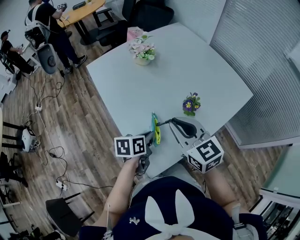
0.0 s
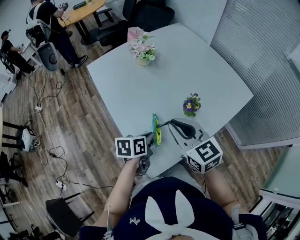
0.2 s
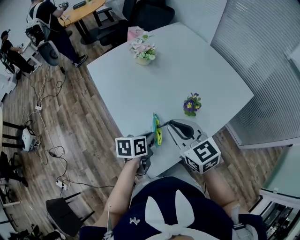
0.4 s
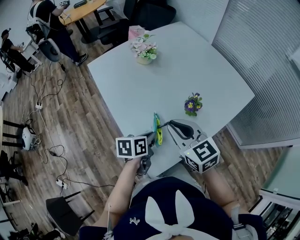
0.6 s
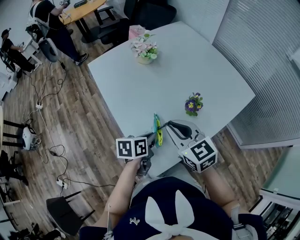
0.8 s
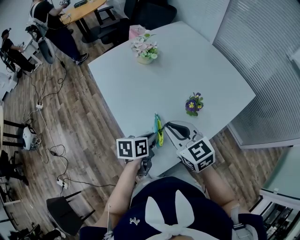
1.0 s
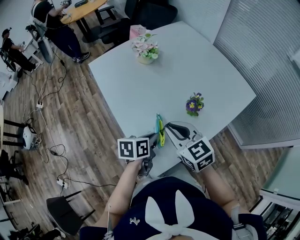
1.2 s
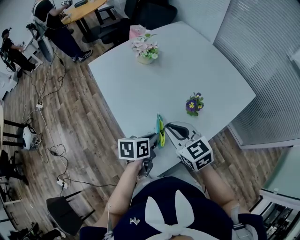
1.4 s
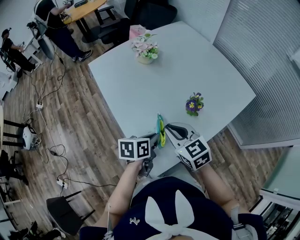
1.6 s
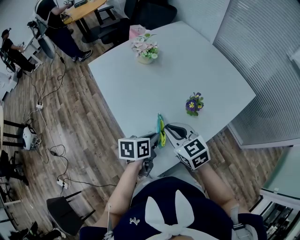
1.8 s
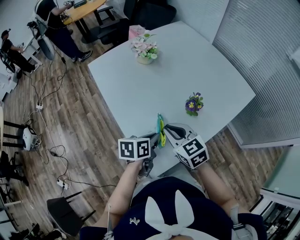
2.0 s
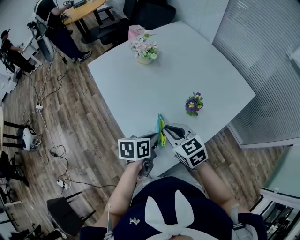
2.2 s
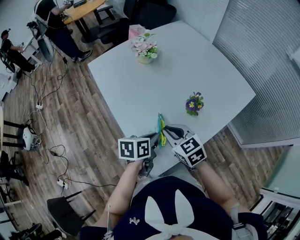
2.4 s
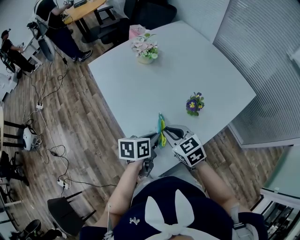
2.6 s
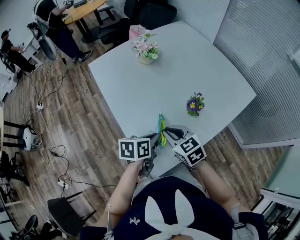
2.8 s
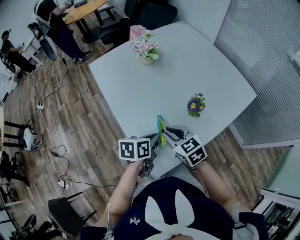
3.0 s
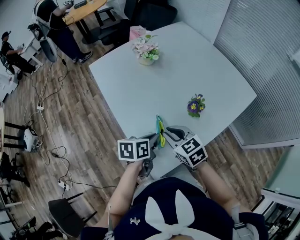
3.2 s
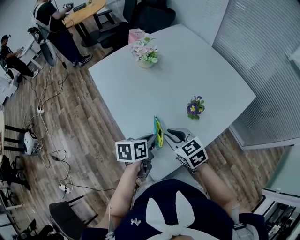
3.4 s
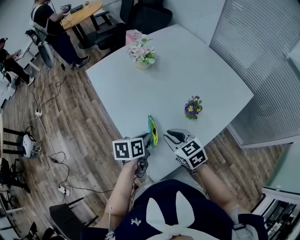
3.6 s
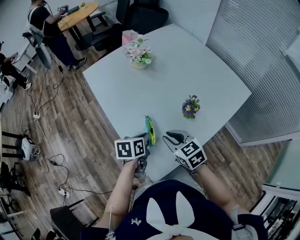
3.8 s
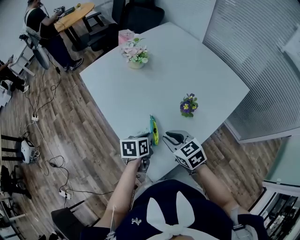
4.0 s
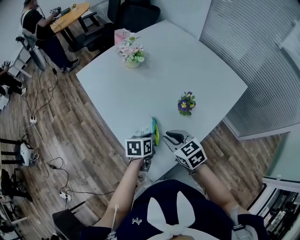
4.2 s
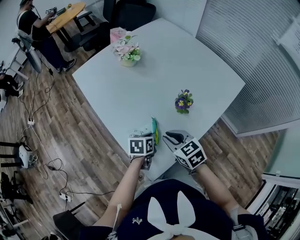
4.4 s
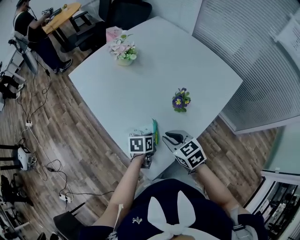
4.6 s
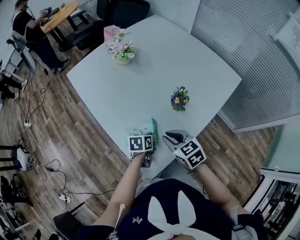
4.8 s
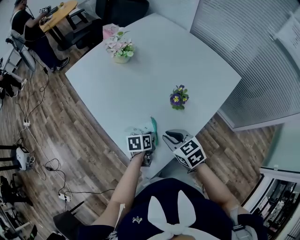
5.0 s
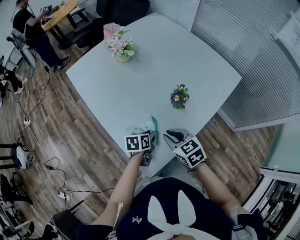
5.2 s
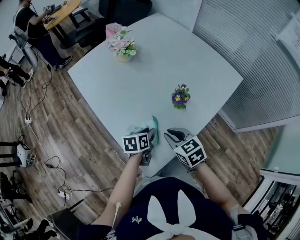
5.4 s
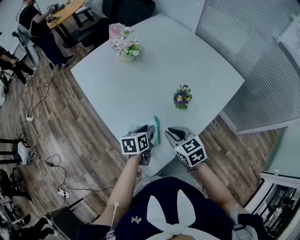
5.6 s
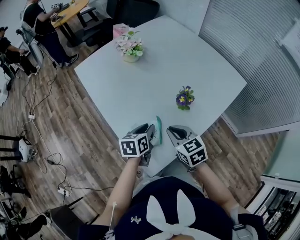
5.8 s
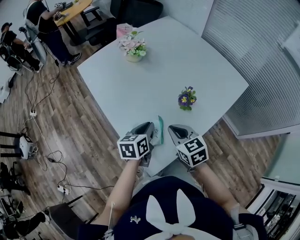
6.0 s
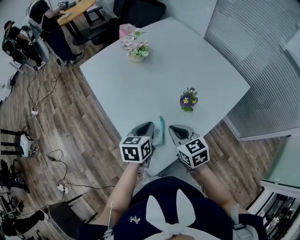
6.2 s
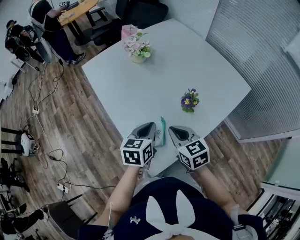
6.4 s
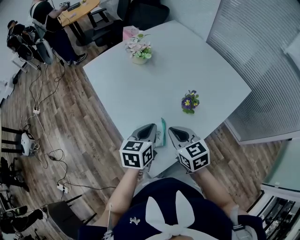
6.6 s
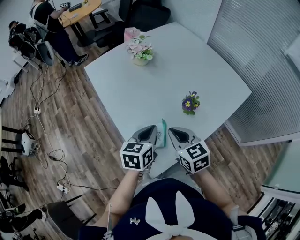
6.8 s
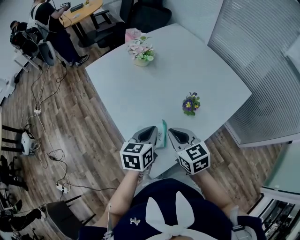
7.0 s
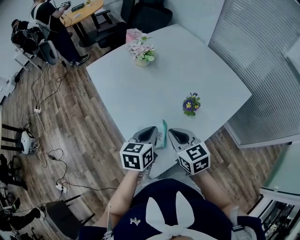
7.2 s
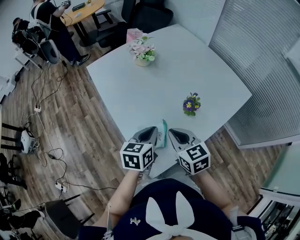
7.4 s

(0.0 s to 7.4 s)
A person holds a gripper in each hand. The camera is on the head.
0.0 s - 1.4 s: The right gripper is displaced downward by about 5 cm.
1.4 s - 3.0 s: The right gripper shifts some 5 cm downward.
3.0 s - 4.4 s: The left gripper shifts roughly 10 cm downward.
4.4 s - 6.0 s: The left gripper heads upward, covering some 10 cm.
6.0 s - 7.4 s: The left gripper goes roughly 5 cm upward, while the right gripper shifts by approximately 5 cm.

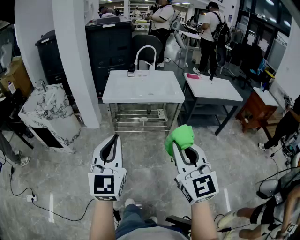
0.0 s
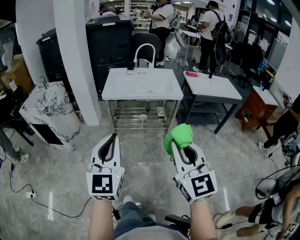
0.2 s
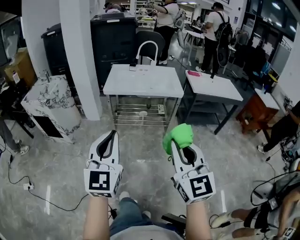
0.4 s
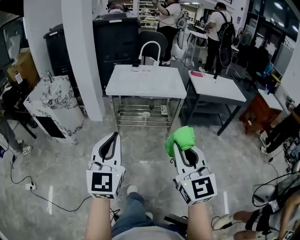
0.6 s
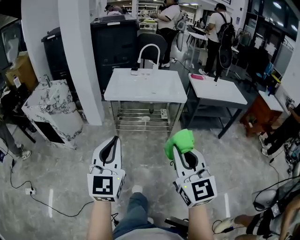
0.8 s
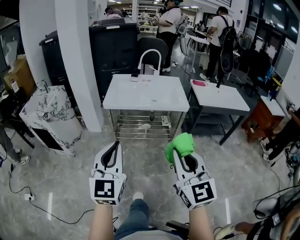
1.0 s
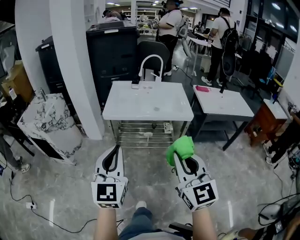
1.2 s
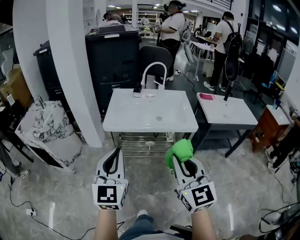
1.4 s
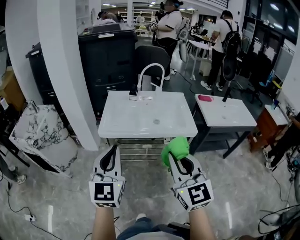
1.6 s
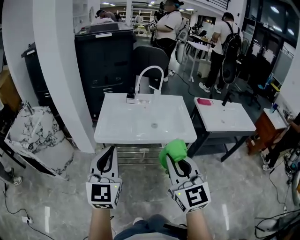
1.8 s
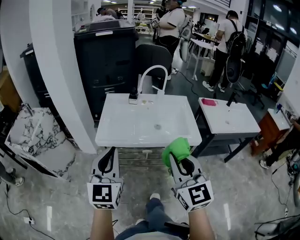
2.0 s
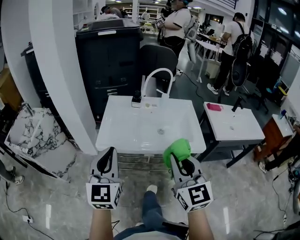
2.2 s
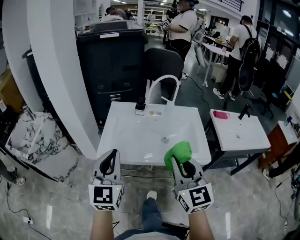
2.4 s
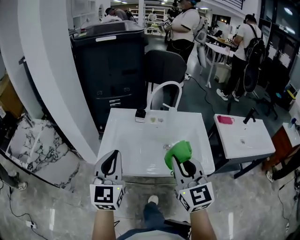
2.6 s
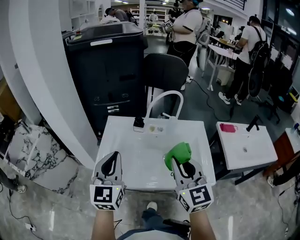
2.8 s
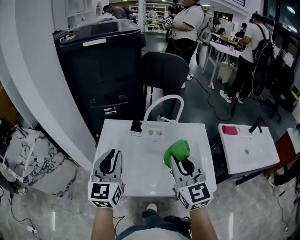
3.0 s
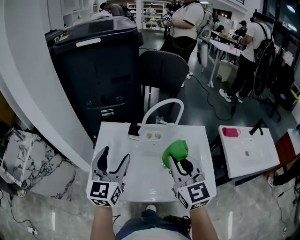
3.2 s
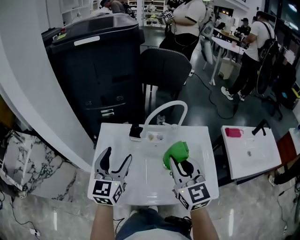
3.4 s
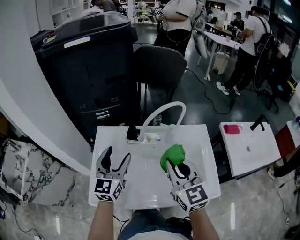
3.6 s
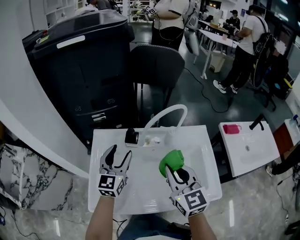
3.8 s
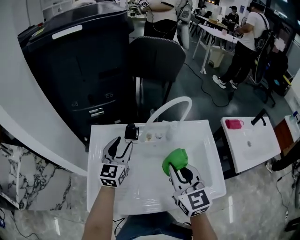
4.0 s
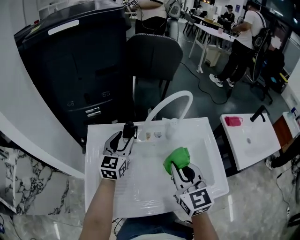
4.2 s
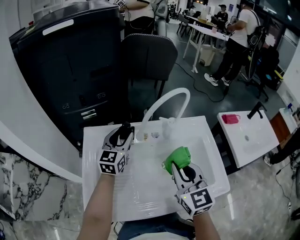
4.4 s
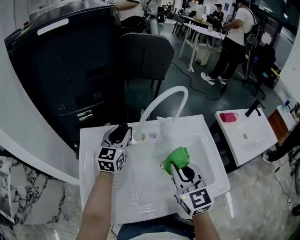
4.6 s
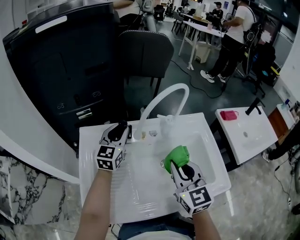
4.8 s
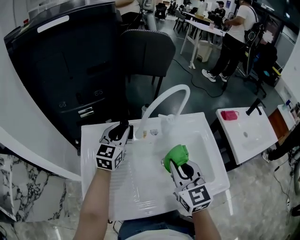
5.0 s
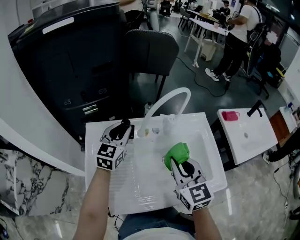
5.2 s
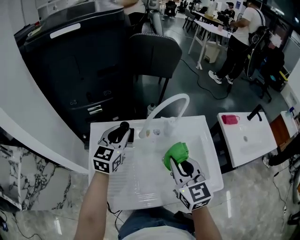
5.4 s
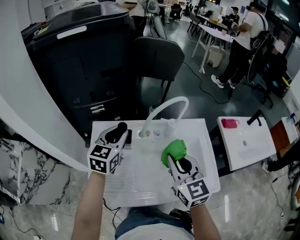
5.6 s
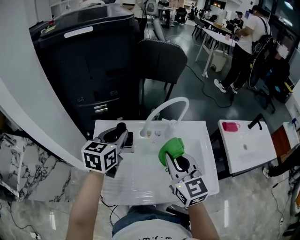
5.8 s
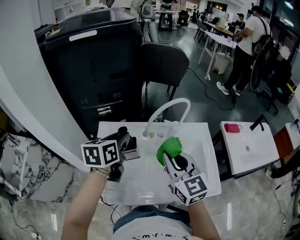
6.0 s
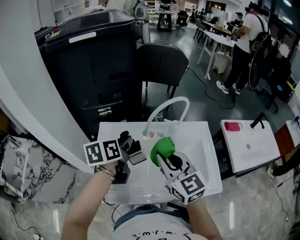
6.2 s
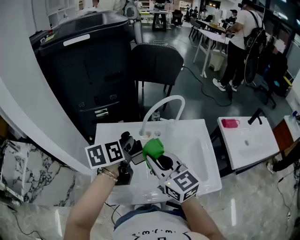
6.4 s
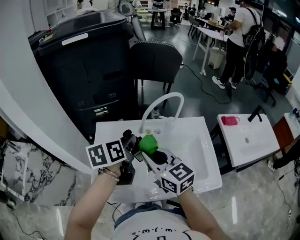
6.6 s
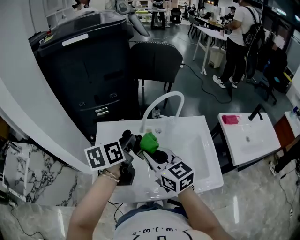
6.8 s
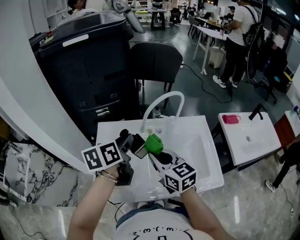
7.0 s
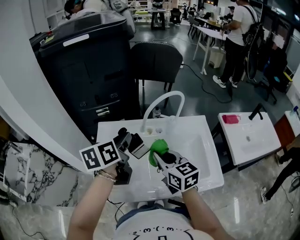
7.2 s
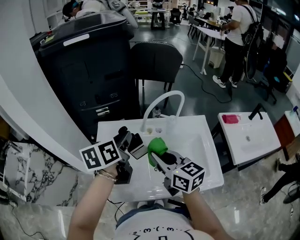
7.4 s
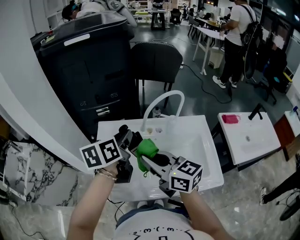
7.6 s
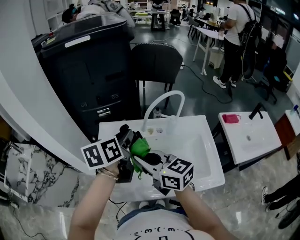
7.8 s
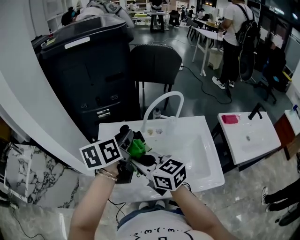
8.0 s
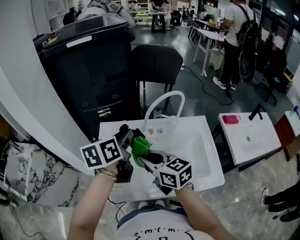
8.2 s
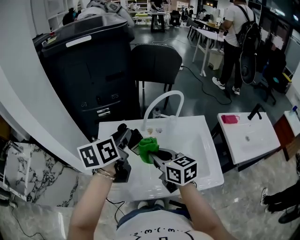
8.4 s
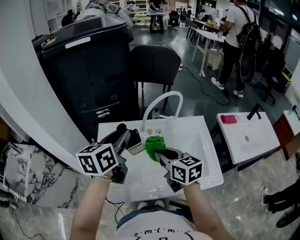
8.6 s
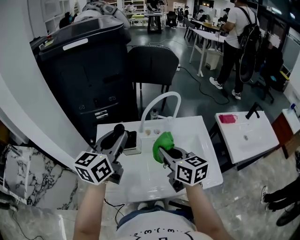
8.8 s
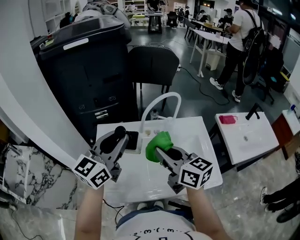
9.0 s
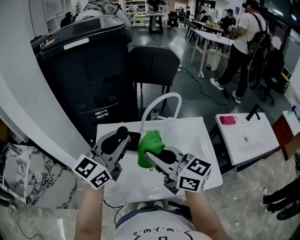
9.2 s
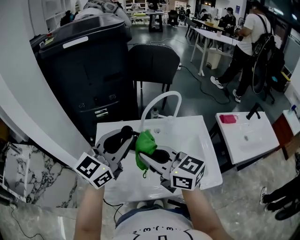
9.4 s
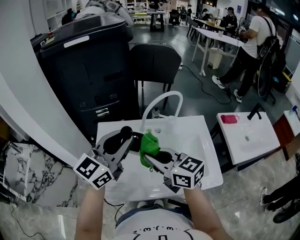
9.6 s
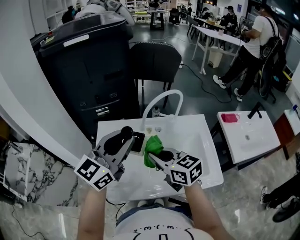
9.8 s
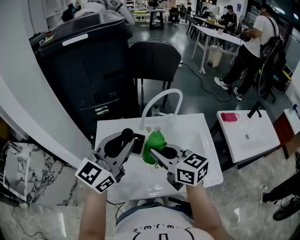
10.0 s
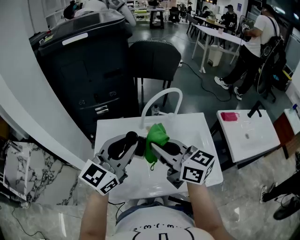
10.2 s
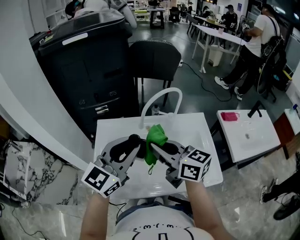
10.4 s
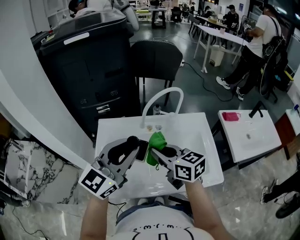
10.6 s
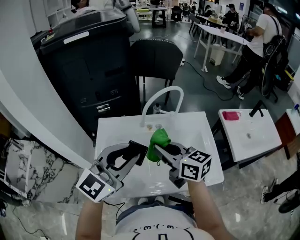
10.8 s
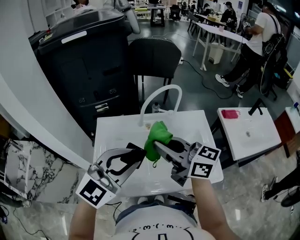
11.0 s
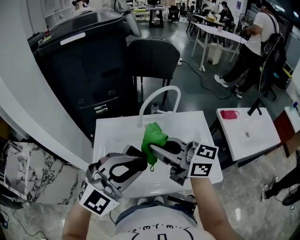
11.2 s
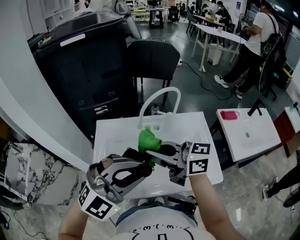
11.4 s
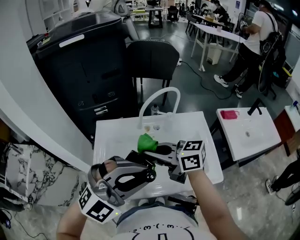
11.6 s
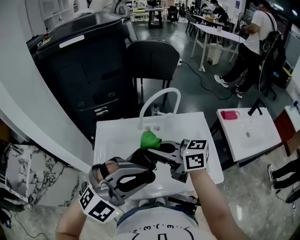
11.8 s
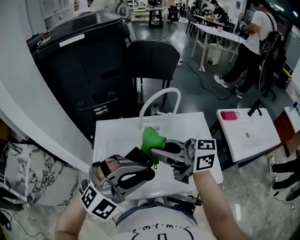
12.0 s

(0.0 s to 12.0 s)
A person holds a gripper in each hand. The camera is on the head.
0.0 s - 1.6 s: Both grippers travel together forward, approximately 30 cm.
1.6 s - 3.0 s: Both grippers move forward, roughly 40 cm.
3.0 s - 4.4 s: The left gripper is displaced forward and downward by roughly 30 cm, rotates roughly 20 degrees, and opens; the right gripper shifts roughly 15 cm downward and forward.
4.4 s - 6.0 s: The left gripper shifts about 15 cm upward and backward, rotates roughly 30 degrees, and closes up; the right gripper heads upward, covering some 10 cm.
6.0 s - 7.6 s: The right gripper heads to the left, covering some 10 cm, and swivels about 30 degrees.
7.6 s - 9.0 s: The right gripper heads to the right, covering roughly 5 cm. Meanwhile the left gripper moves upward, some 5 cm, and changes its angle by some 40 degrees.
9.0 s - 10.4 s: The left gripper changes place by roughly 5 cm. Meanwhile the right gripper moves up and down over roughly 10 cm, changing direction 2 times.
10.4 s - 12.0 s: The left gripper moves approximately 10 cm, and rolls clockwise, seen from behind, by approximately 50 degrees; the right gripper goes up and down, roughly 10 cm each way, reversing 3 times, and turns by some 30 degrees.

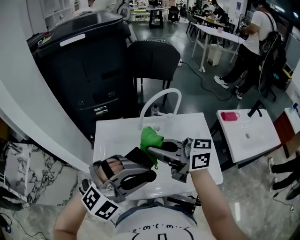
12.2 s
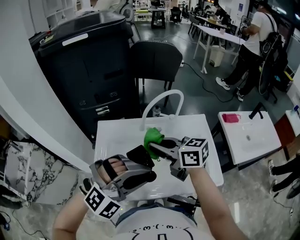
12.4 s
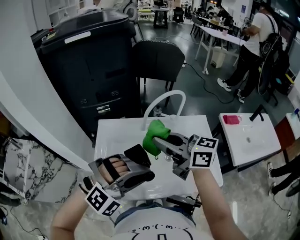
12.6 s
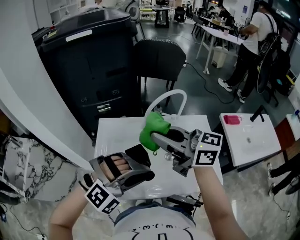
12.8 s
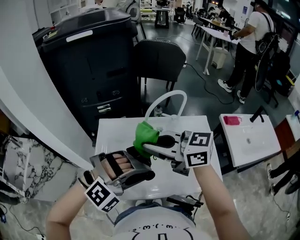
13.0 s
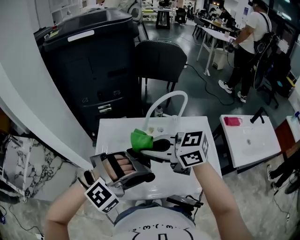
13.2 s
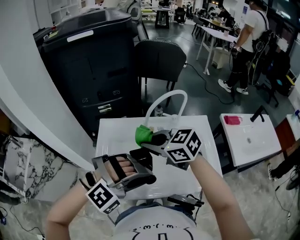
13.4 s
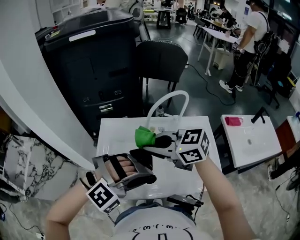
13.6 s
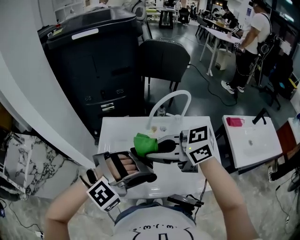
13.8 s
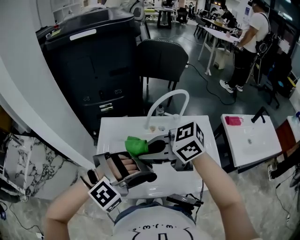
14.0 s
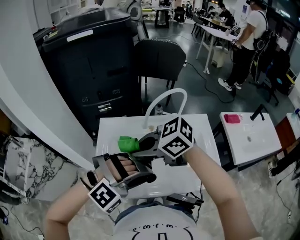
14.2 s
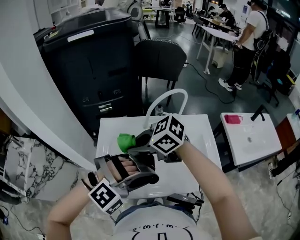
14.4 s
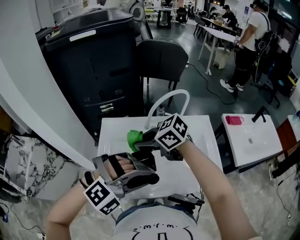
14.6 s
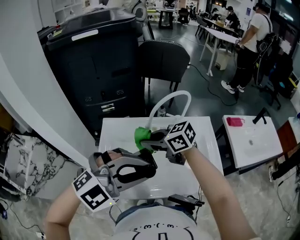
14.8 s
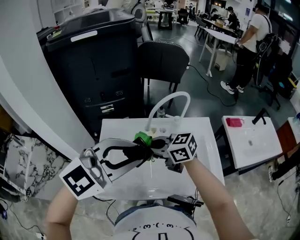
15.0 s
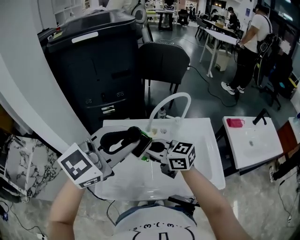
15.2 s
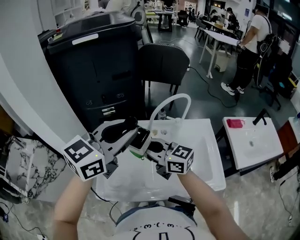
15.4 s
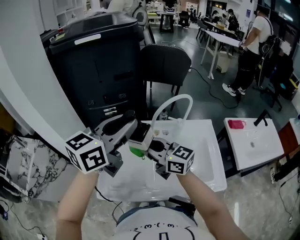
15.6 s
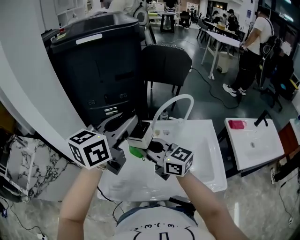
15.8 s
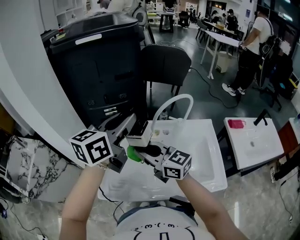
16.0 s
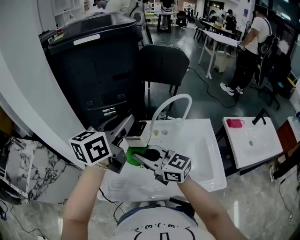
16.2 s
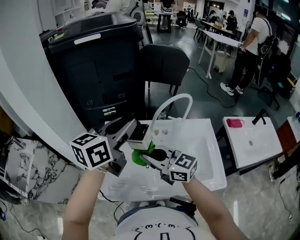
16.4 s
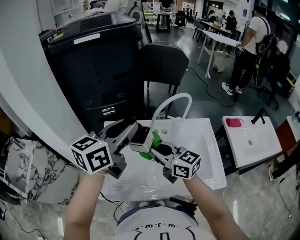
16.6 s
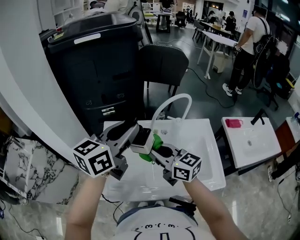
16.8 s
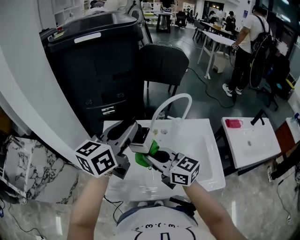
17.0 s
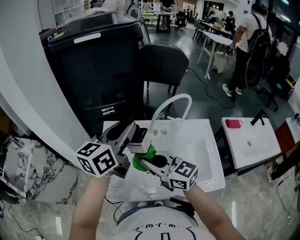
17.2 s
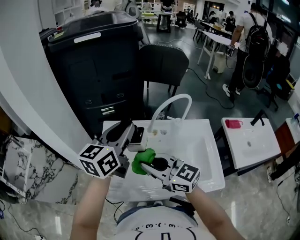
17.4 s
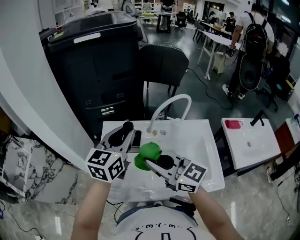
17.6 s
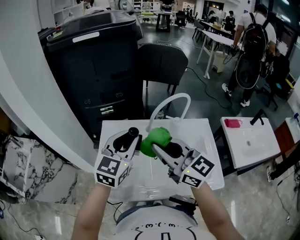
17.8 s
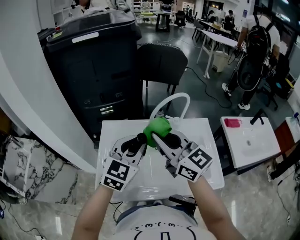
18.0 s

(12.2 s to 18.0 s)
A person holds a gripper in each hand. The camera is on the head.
12.2 s - 13.6 s: The left gripper travels downward by roughly 5 cm, and turns by roughly 20 degrees. Meanwhile the right gripper goes up and down, roughly 10 cm each way, reversing 2 times, and changes its angle by approximately 30 degrees.
13.6 s - 15.0 s: The left gripper shifts roughly 15 cm upward, and rotates around the line of its fingers by roughly 40 degrees, counterclockwise from behind, while the right gripper shifts roughly 5 cm downward.
15.0 s - 16.6 s: The right gripper swivels approximately 30 degrees, while the left gripper moves roughly 10 cm, and rolls counterclockwise, seen from behind, by some 50 degrees.
16.6 s - 18.0 s: The right gripper goes approximately 10 cm upward; the left gripper travels downward by some 10 cm, and changes its angle by approximately 40 degrees.
